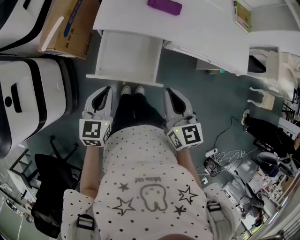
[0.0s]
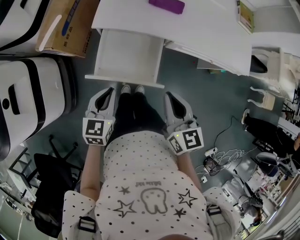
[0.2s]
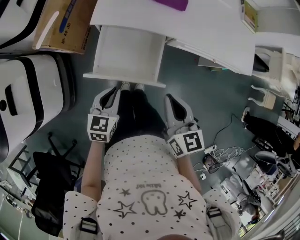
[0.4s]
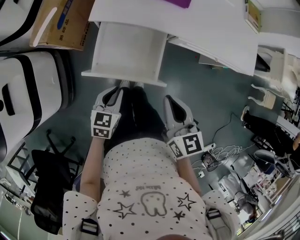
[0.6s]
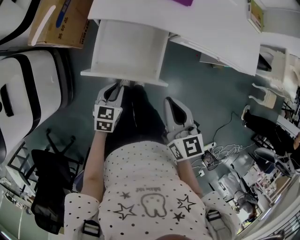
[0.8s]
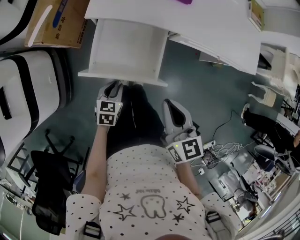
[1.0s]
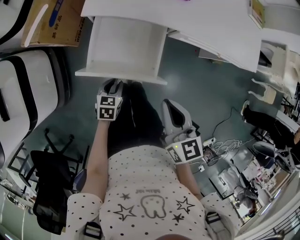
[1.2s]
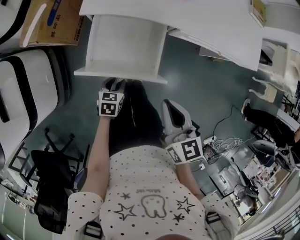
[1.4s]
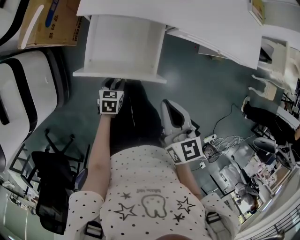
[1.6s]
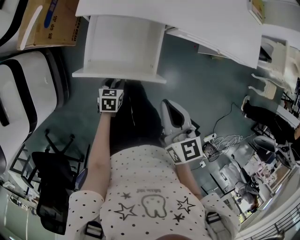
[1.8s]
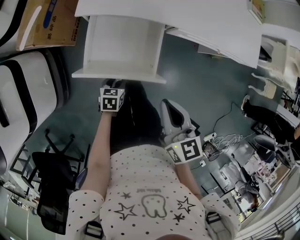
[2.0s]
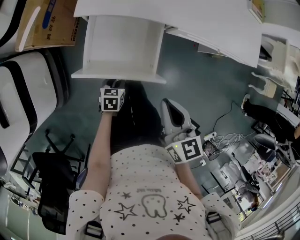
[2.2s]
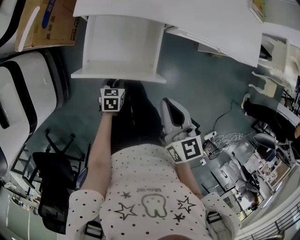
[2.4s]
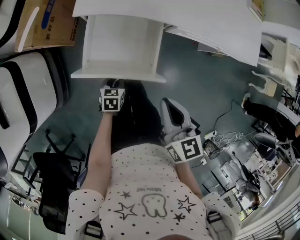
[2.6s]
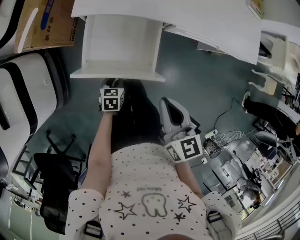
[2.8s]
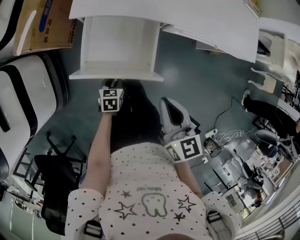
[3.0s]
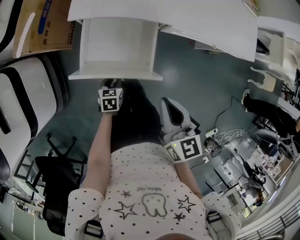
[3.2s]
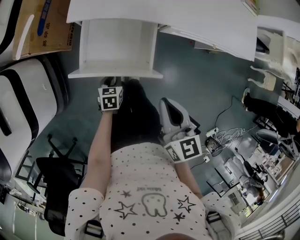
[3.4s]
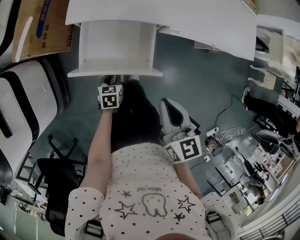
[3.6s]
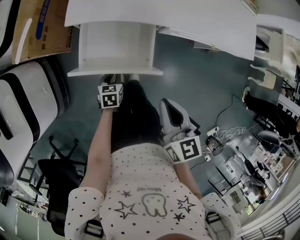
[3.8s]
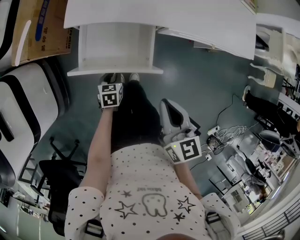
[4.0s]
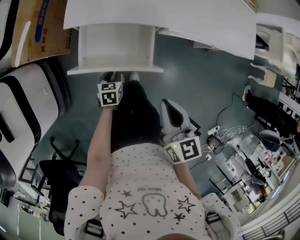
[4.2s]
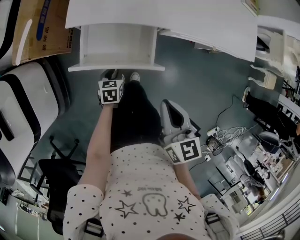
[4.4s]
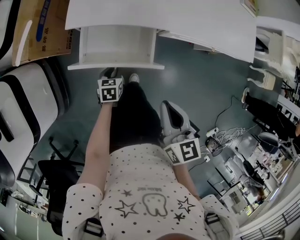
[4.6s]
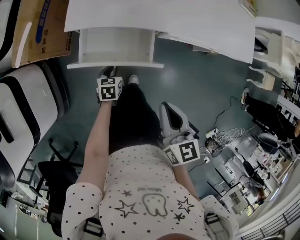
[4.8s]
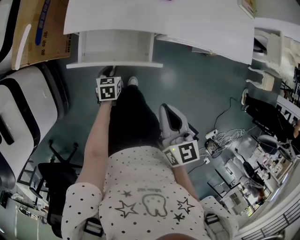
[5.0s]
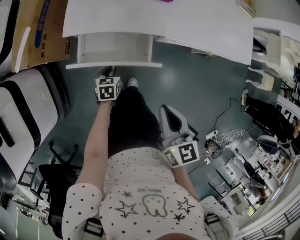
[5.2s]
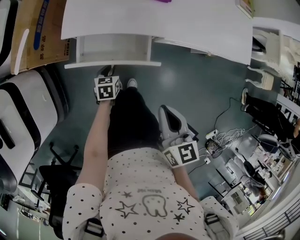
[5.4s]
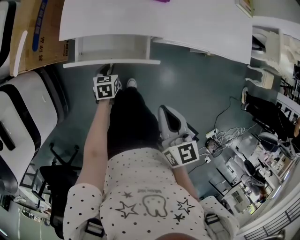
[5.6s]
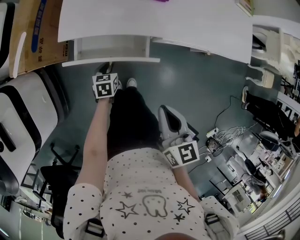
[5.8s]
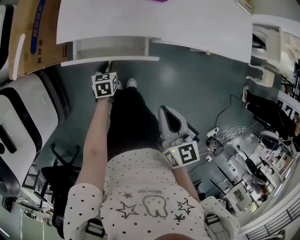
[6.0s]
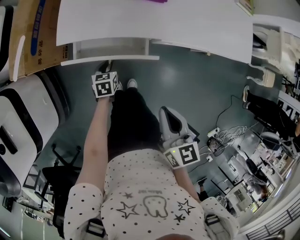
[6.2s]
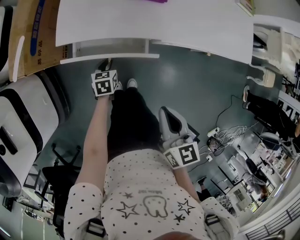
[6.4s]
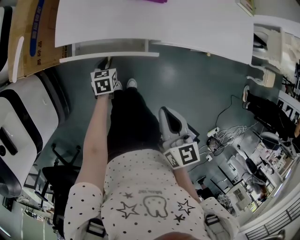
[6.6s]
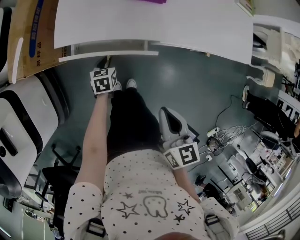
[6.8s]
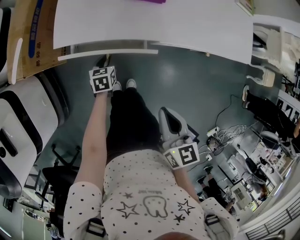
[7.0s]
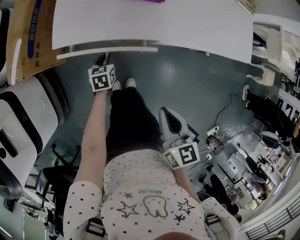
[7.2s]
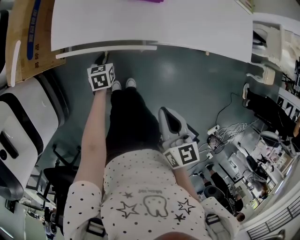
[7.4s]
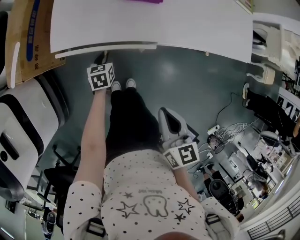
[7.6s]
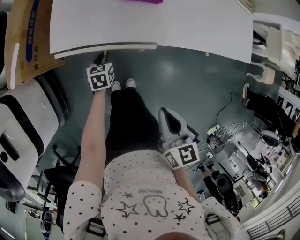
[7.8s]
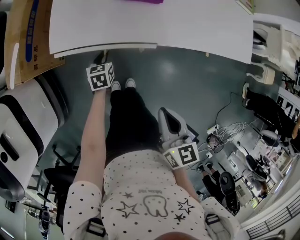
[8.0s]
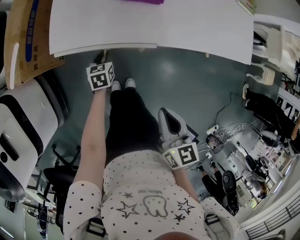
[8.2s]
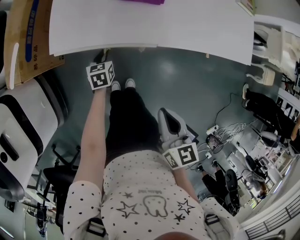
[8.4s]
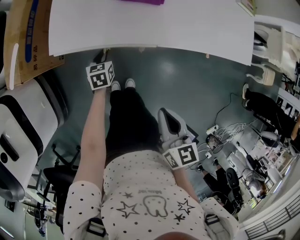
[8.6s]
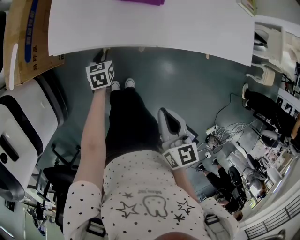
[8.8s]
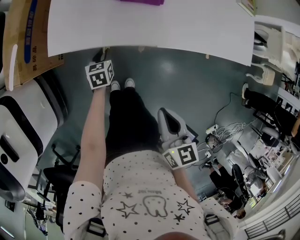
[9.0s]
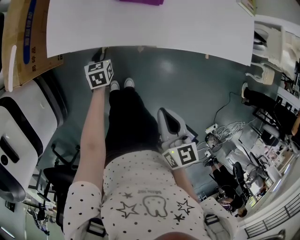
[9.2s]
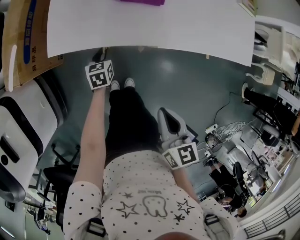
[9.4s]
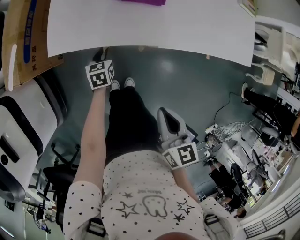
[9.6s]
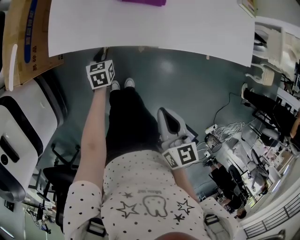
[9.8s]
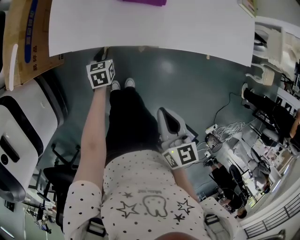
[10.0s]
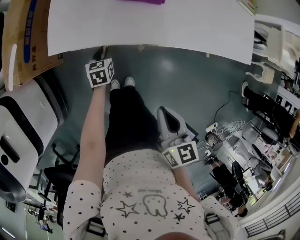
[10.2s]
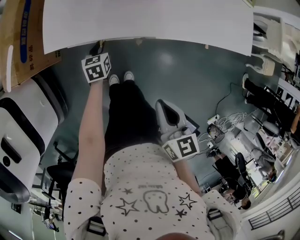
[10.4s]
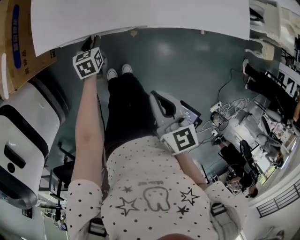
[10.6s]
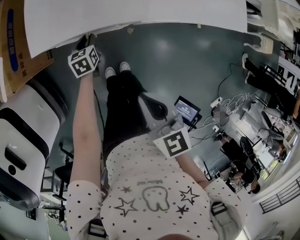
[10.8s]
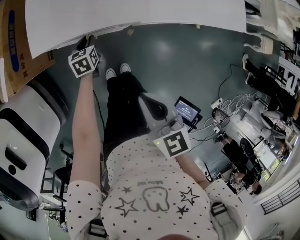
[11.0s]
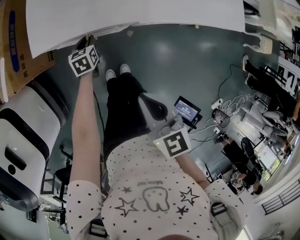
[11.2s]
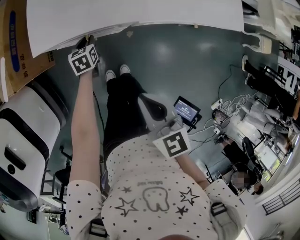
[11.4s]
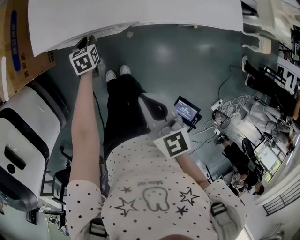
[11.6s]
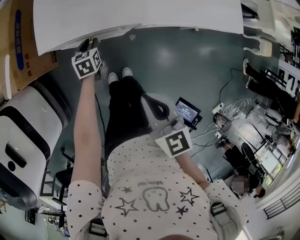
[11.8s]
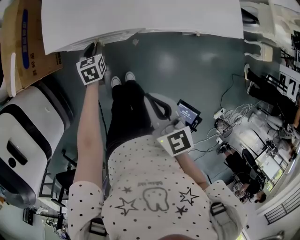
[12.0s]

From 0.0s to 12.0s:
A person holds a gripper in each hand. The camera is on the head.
From 0.0s to 1.6s: The right gripper moves downward, about 5 cm; the left gripper goes some 25 cm downward, changes its angle by some 30 degrees, and opens its fingers.
From 1.6s to 3.0s: The grippers make only small movements.
From 3.0s to 4.4s: The left gripper travels forward by roughly 5 cm.
From 4.4s to 6.0s: The left gripper is displaced forward by some 10 cm.
From 6.0s to 7.6s: The left gripper heads forward, covering some 5 cm.
From 7.6s to 9.0s: The grippers stay close to where they were, moving slightly.
From 9.0s to 10.4s: The two grippers keep their place.
From 10.4s to 12.0s: The right gripper ends up some 5 cm from where it was.

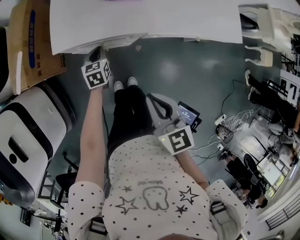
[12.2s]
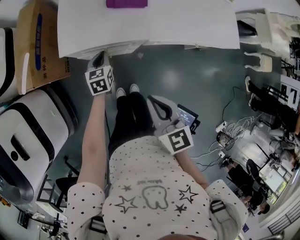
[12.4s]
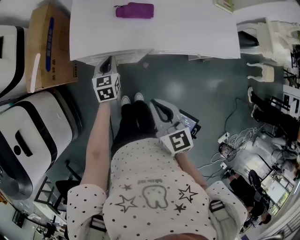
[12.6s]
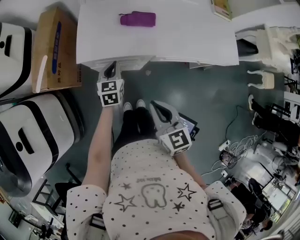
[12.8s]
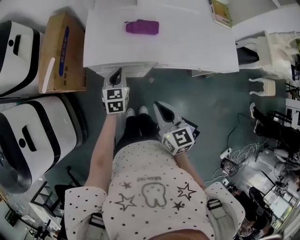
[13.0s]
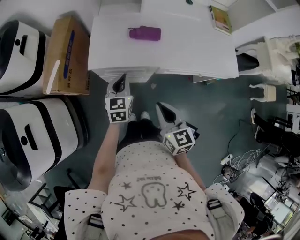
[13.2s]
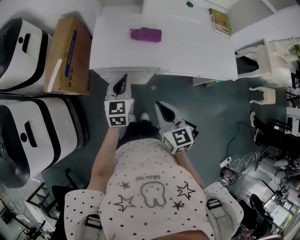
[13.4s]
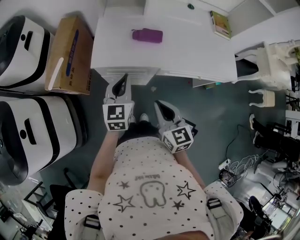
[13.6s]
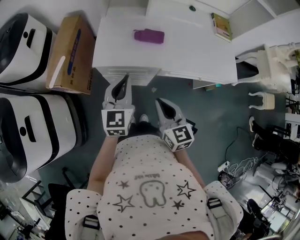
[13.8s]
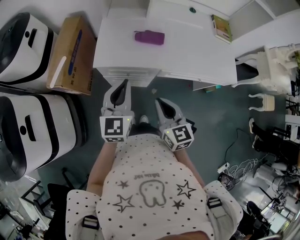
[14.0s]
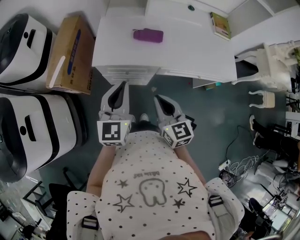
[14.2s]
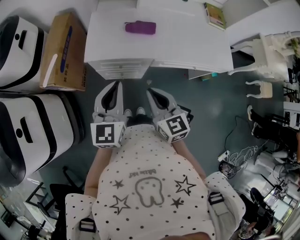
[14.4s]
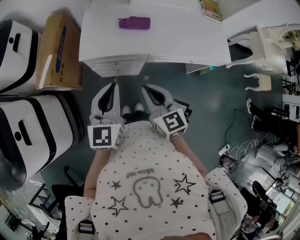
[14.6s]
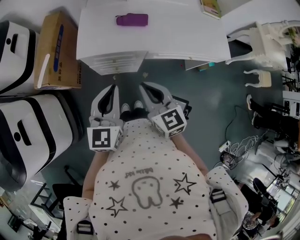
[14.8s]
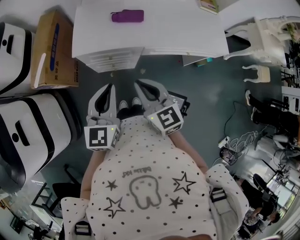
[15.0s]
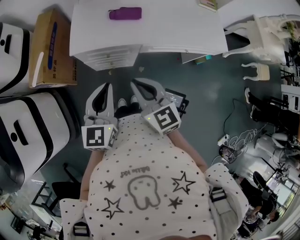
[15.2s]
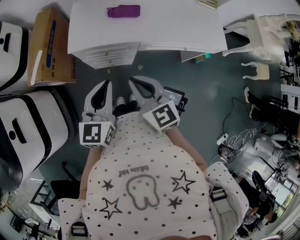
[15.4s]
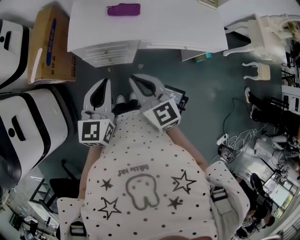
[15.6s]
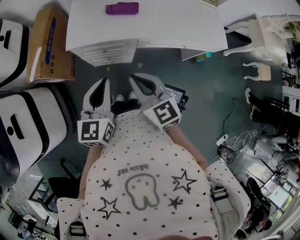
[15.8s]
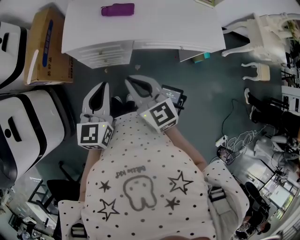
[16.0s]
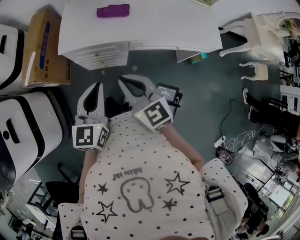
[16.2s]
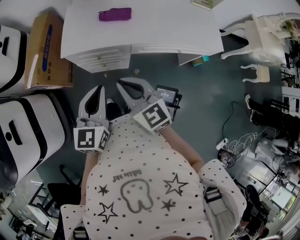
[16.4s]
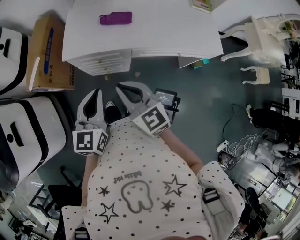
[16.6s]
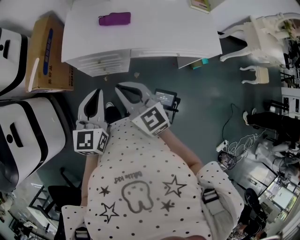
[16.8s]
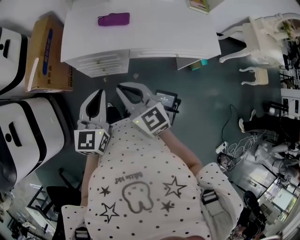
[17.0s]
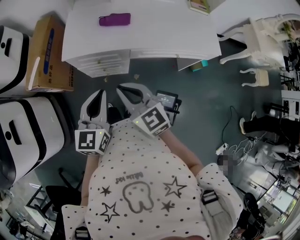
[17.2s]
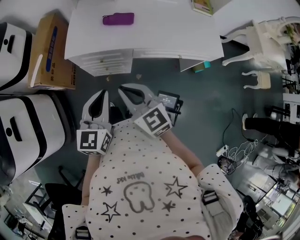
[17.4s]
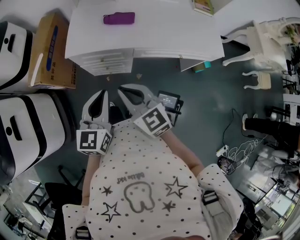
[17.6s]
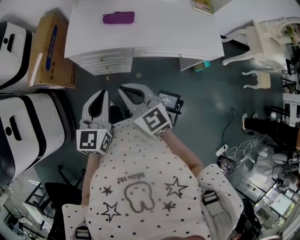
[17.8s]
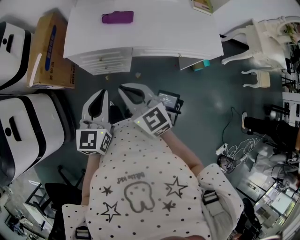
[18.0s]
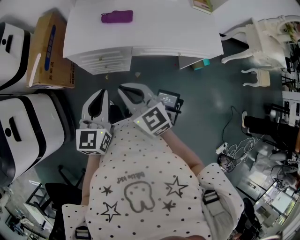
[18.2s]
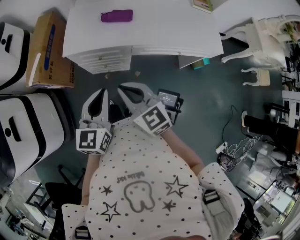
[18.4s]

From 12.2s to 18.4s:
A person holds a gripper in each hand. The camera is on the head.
From 12.2s to 13.8s: The left gripper travels upward by roughly 30 cm, and points its fingers about 30 degrees further upward. The right gripper changes place by some 5 cm.
From 13.8s to 15.4s: The left gripper goes about 10 cm backward.
From 15.4s to 18.4s: The grippers make only small movements.

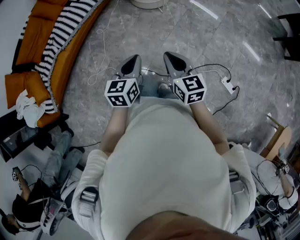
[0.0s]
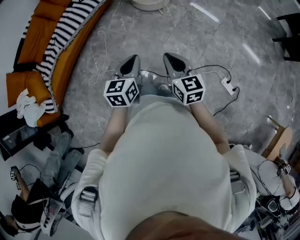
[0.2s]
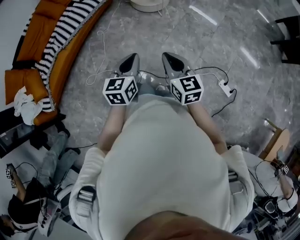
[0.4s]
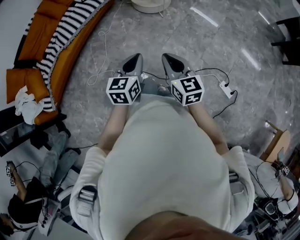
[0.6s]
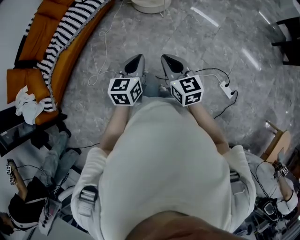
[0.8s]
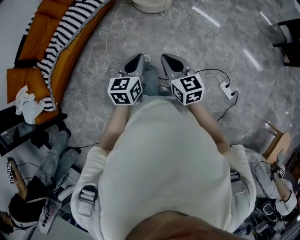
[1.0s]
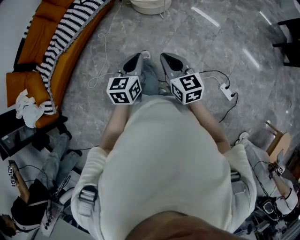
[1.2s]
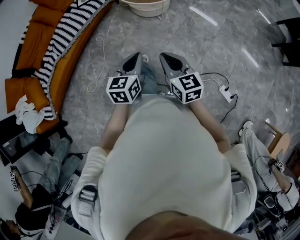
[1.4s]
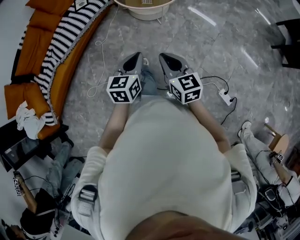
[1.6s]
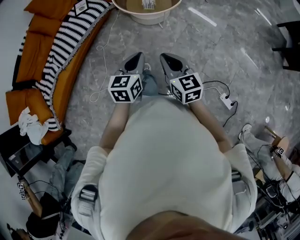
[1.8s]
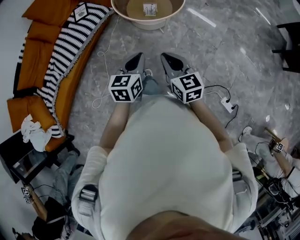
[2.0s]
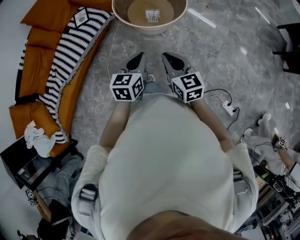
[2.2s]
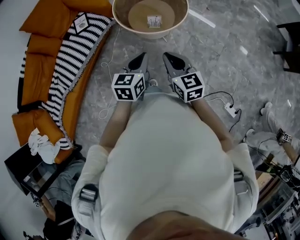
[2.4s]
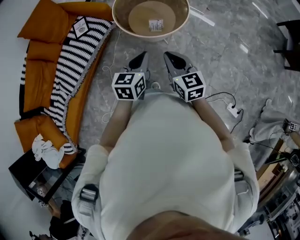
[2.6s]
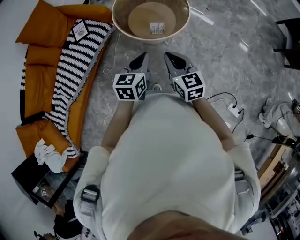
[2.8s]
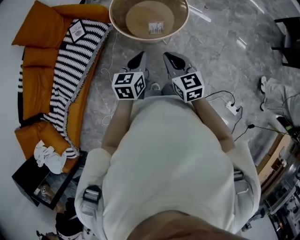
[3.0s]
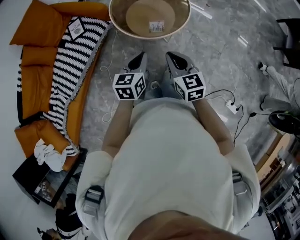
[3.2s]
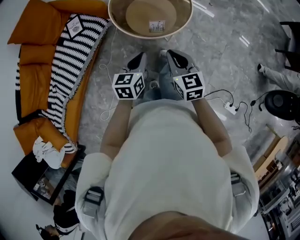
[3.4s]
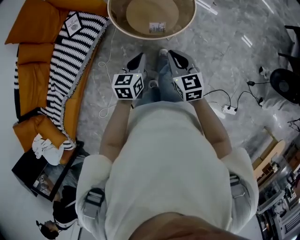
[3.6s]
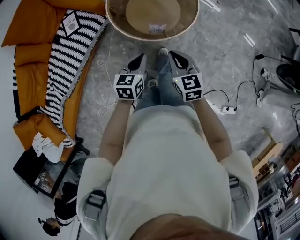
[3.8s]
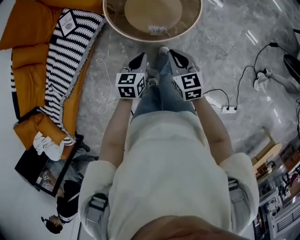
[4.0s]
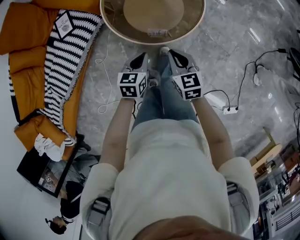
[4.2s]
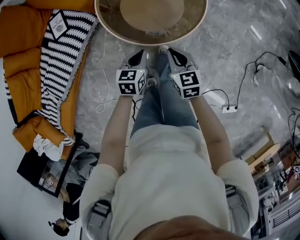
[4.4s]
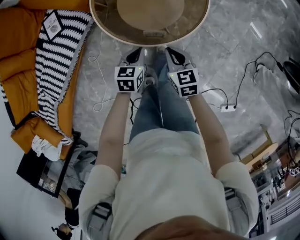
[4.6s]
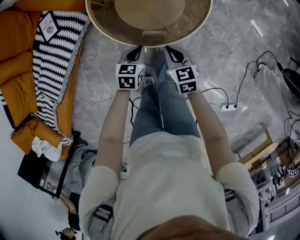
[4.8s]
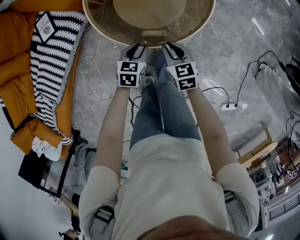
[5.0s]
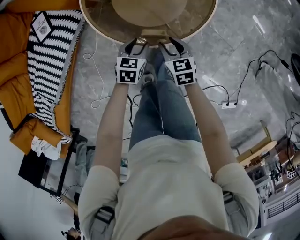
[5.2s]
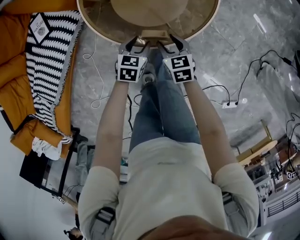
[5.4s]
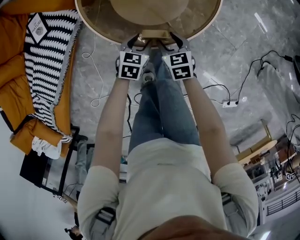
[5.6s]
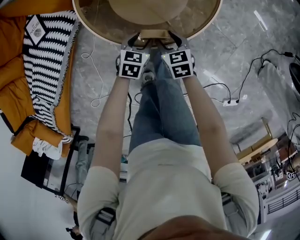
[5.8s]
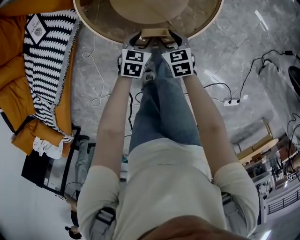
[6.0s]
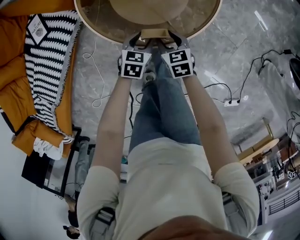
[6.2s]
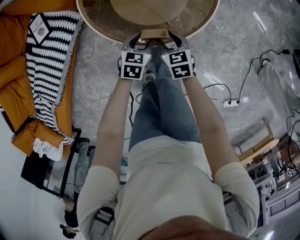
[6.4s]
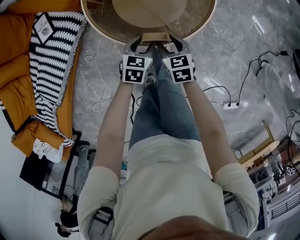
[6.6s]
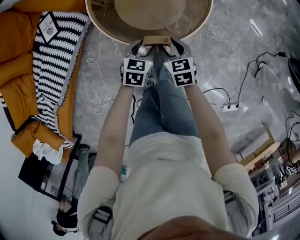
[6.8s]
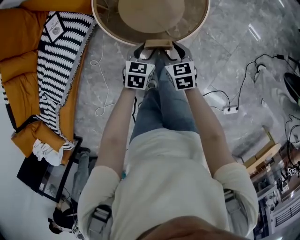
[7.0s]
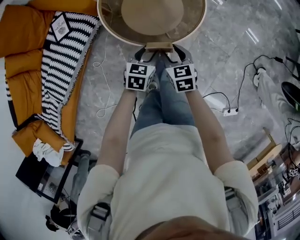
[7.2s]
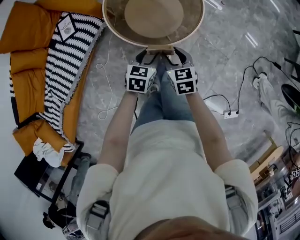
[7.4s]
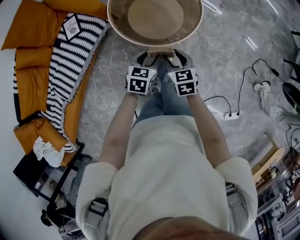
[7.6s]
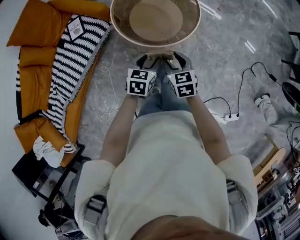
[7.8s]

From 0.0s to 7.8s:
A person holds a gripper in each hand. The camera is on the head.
From 0.0s to 1.6s: The grippers both shift forward by some 10 cm.
From 1.6s to 3.2s: Both grippers travel together forward, some 30 cm.
From 3.2s to 4.6s: Both grippers travel together downward and forward, some 30 cm.
From 4.6s to 6.2s: Both grippers move downward, approximately 15 cm. The right gripper opens up. Meanwhile the left gripper opens its fingers.
From 6.2s to 7.8s: The grippers both shift upward and backward by about 30 cm.
